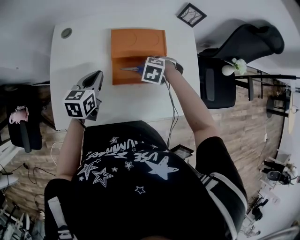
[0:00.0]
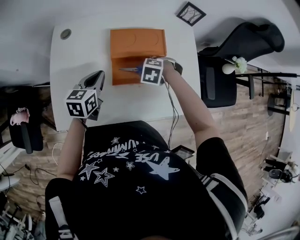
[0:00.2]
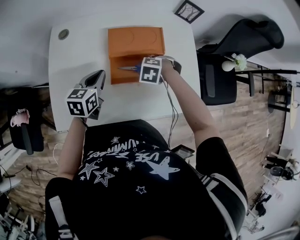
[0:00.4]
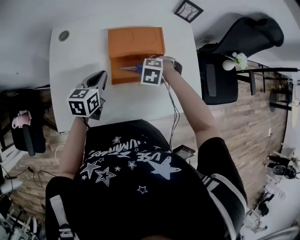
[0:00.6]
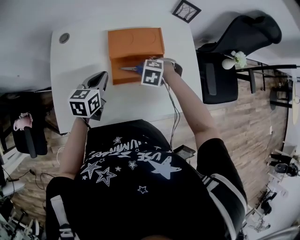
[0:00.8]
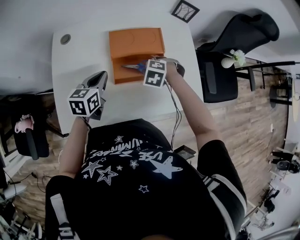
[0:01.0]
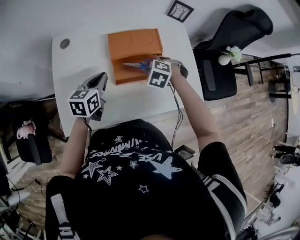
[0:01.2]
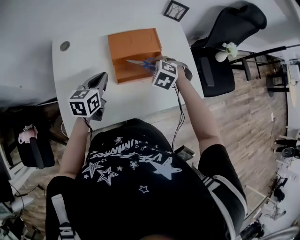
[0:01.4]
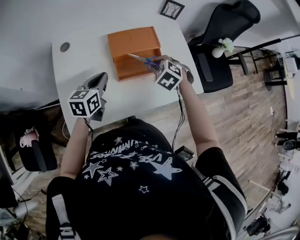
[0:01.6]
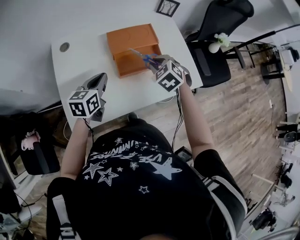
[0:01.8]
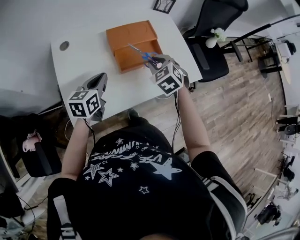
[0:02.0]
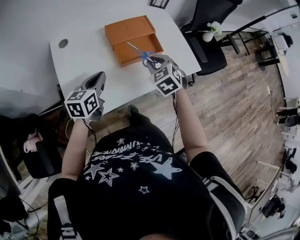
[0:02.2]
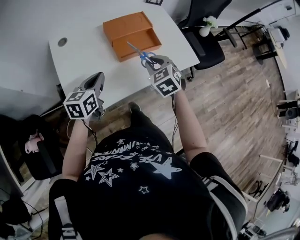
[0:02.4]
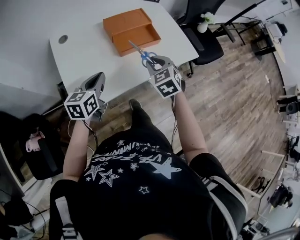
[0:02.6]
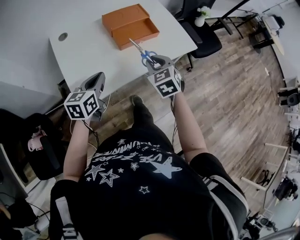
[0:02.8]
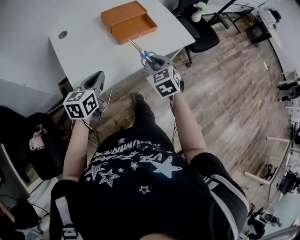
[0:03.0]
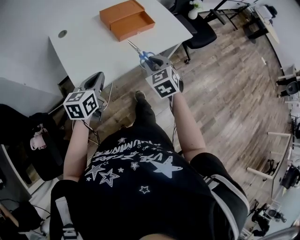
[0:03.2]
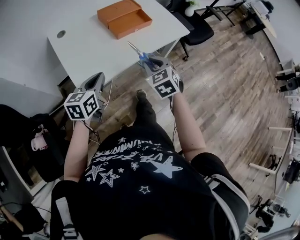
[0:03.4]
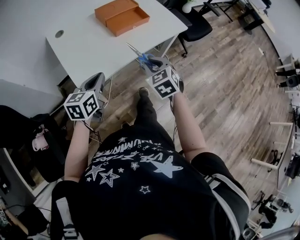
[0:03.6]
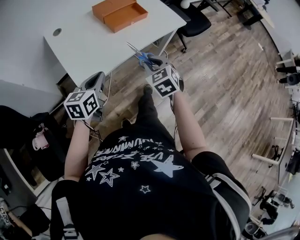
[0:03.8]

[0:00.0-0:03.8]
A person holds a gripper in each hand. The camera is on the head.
0.0 to 1.2 s: The right gripper is displaced upward by some 5 cm.
1.2 to 2.6 s: The right gripper goes about 25 cm backward and upward, and swivels about 50 degrees. Meanwhile the left gripper shifts roughly 20 cm backward.
2.6 to 3.8 s: The grippers both shift backward by some 20 cm.

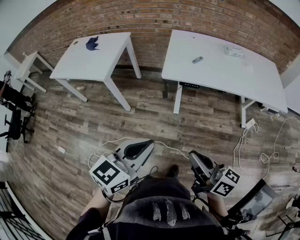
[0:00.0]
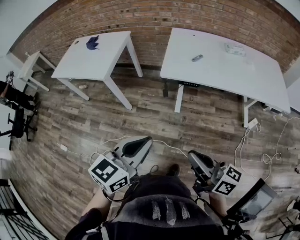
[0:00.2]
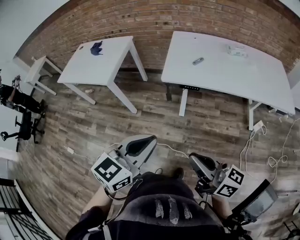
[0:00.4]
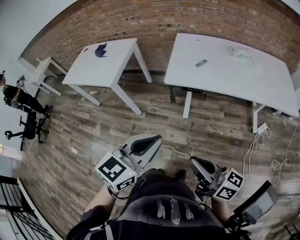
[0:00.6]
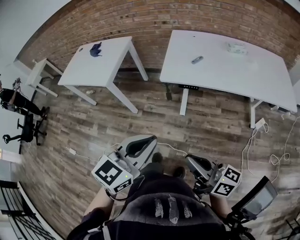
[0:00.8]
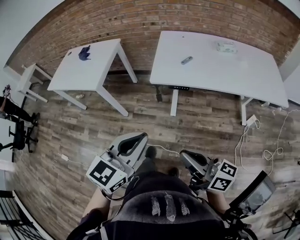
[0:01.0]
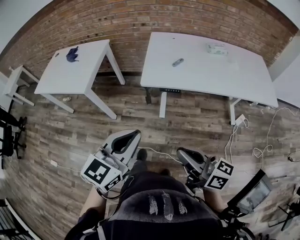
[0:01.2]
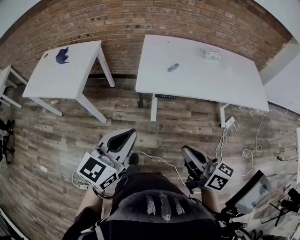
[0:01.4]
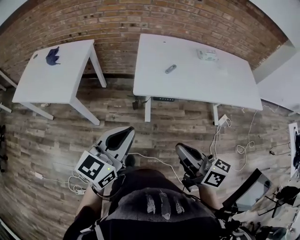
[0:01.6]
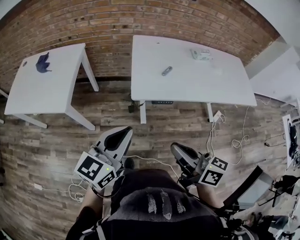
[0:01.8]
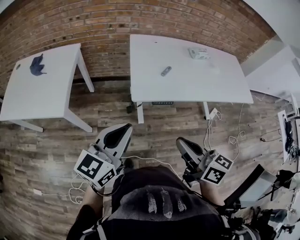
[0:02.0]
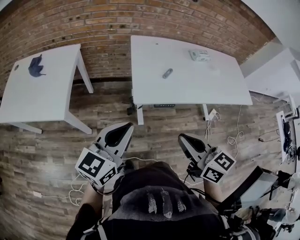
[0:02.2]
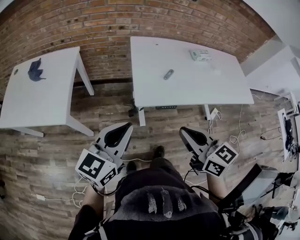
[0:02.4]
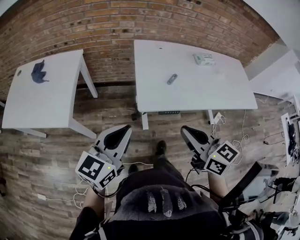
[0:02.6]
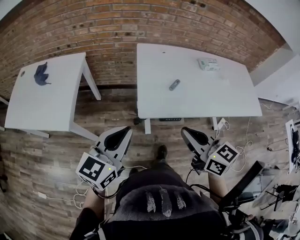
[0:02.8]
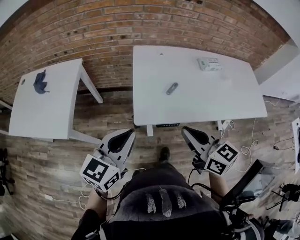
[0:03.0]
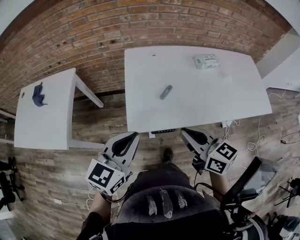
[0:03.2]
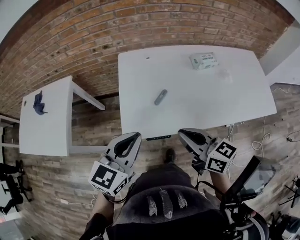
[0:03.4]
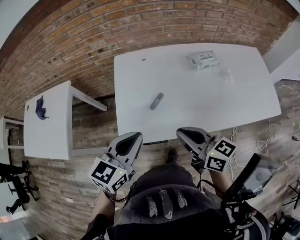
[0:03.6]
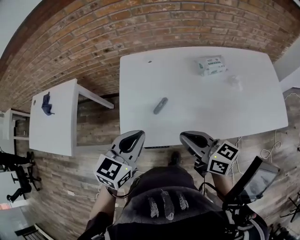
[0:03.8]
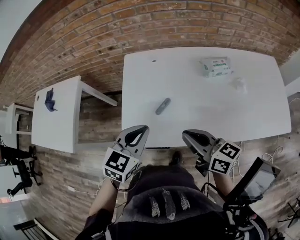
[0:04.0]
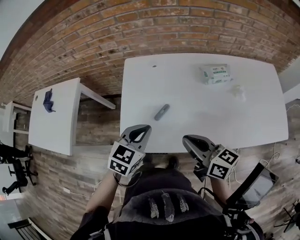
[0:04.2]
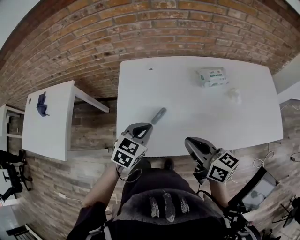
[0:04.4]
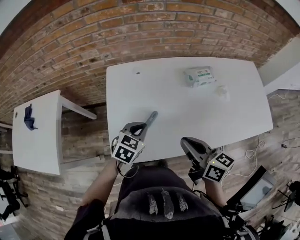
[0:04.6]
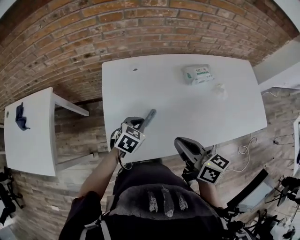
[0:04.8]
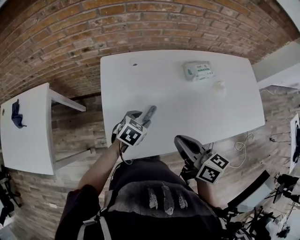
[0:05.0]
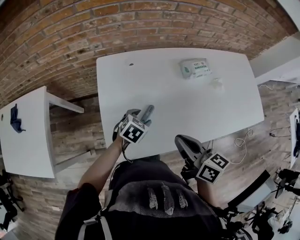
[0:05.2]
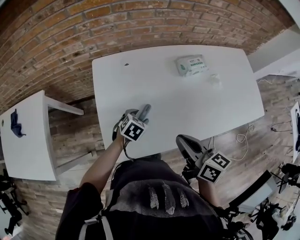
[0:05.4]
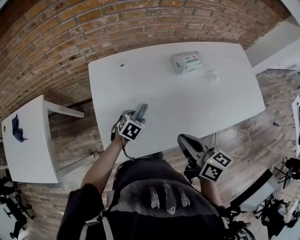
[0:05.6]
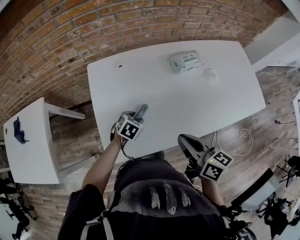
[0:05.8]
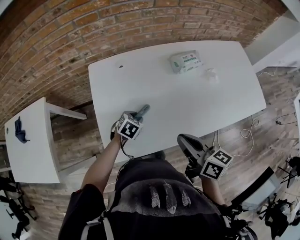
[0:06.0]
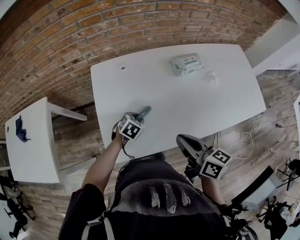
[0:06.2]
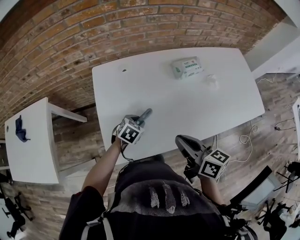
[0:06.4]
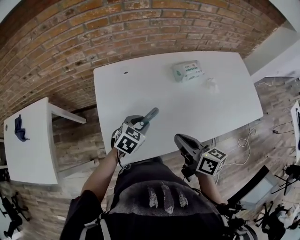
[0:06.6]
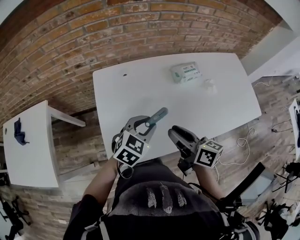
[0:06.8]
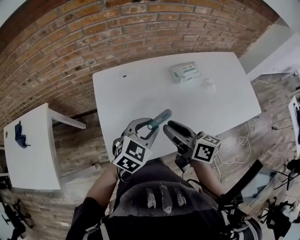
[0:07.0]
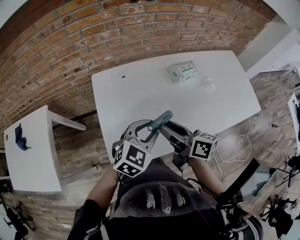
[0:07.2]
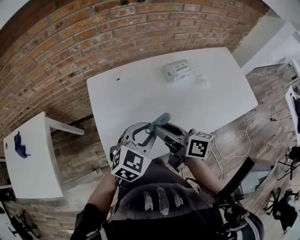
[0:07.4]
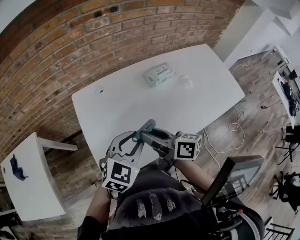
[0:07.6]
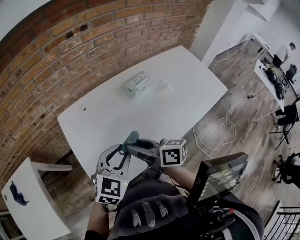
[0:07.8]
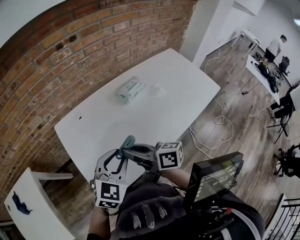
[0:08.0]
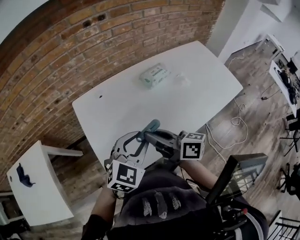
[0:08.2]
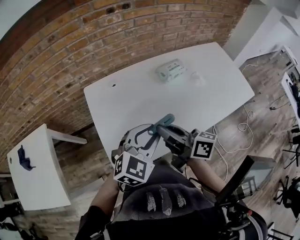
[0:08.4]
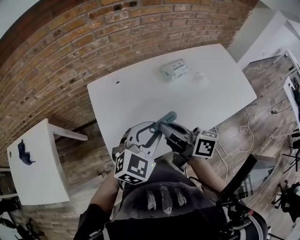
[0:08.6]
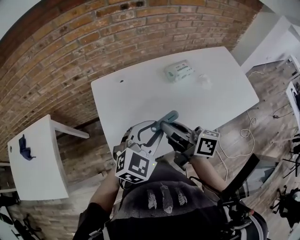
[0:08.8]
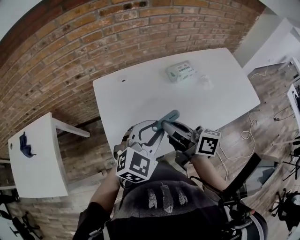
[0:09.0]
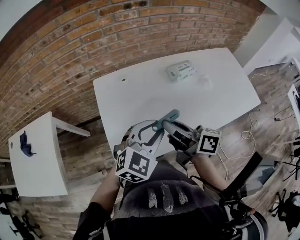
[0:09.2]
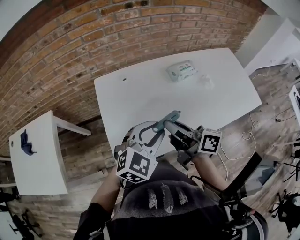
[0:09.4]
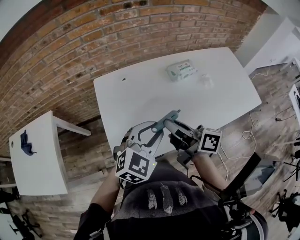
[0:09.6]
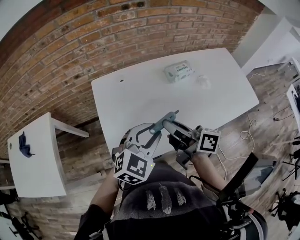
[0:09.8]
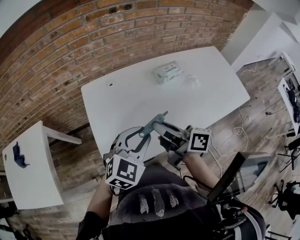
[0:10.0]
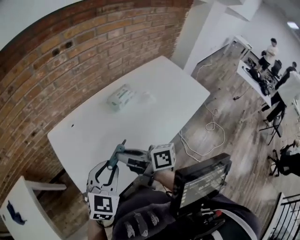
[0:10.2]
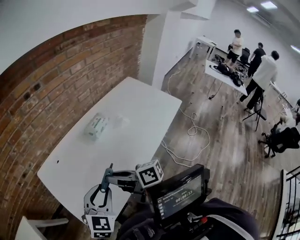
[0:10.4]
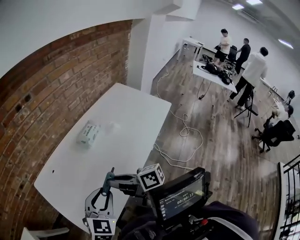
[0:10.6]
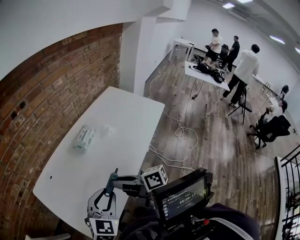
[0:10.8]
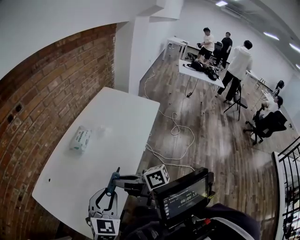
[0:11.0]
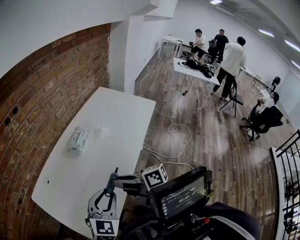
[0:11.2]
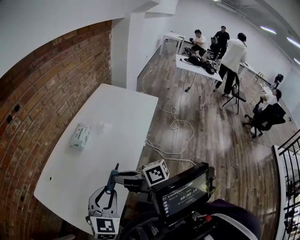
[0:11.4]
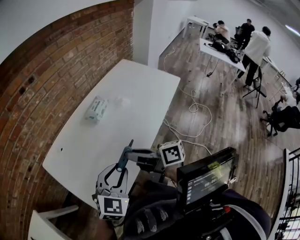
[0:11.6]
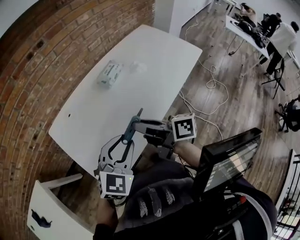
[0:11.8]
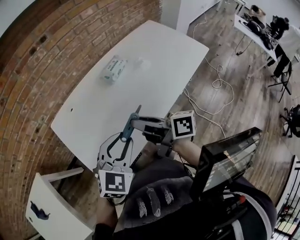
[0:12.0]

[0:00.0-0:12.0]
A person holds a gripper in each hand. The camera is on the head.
0.0 to 1.6 s: The grippers both shift forward by some 15 cm.
1.6 to 3.0 s: The grippers both shift forward by approximately 20 cm. The right gripper turns by about 20 degrees.
3.0 to 4.4 s: The right gripper travels to the right and forward by about 25 cm. The left gripper is displaced to the right, forward and downward by about 30 cm, and rotates about 30 degrees.
4.4 to 6.0 s: The left gripper heads downward, covering approximately 15 cm, turns by roughly 30 degrees, and opens its fingers.
6.0 to 7.6 s: The right gripper is displaced to the left and forward by roughly 10 cm, and opens up, while the left gripper travels upward by about 25 cm, and tilts its fingers approximately 30 degrees upward.
7.6 to 9.0 s: The right gripper closes.
9.0 to 10.4 s: The grippers stay close to where they were, moving slightly.
10.4 to 12.0 s: The left gripper ends up roughly 5 cm from where it was; the right gripper heads to the right, covering roughly 5 cm.

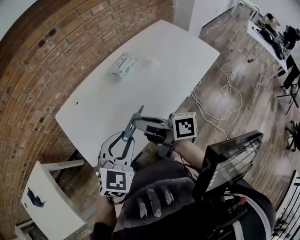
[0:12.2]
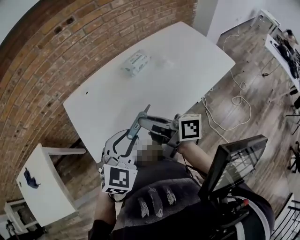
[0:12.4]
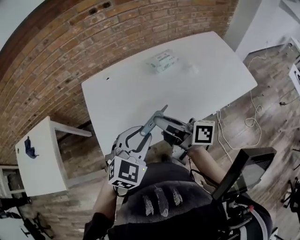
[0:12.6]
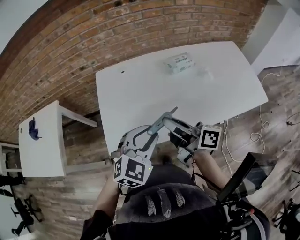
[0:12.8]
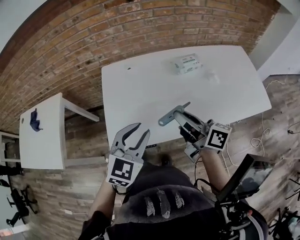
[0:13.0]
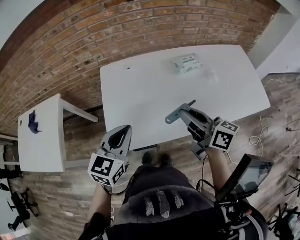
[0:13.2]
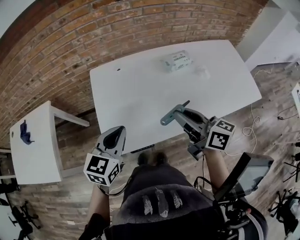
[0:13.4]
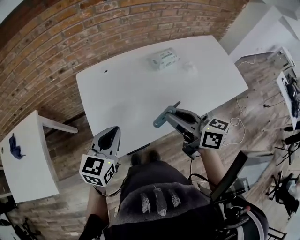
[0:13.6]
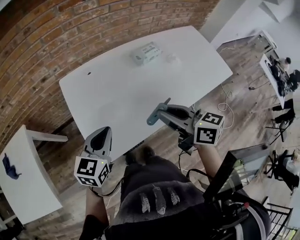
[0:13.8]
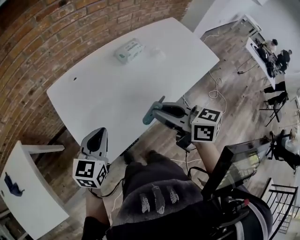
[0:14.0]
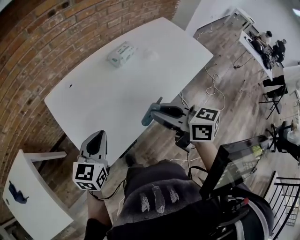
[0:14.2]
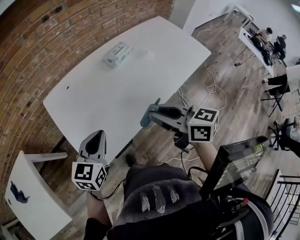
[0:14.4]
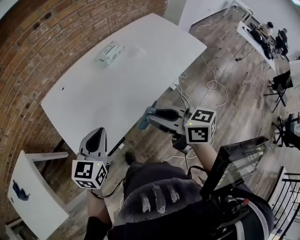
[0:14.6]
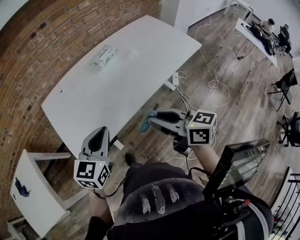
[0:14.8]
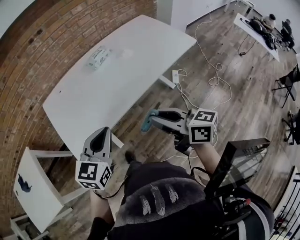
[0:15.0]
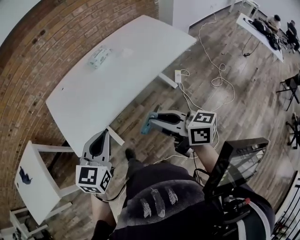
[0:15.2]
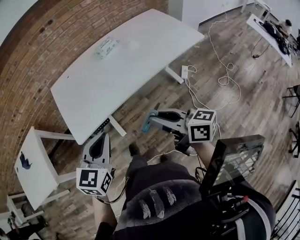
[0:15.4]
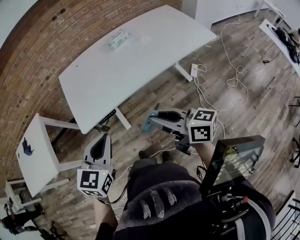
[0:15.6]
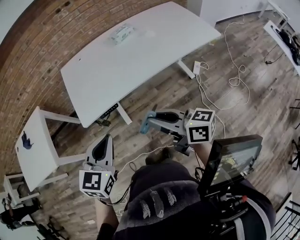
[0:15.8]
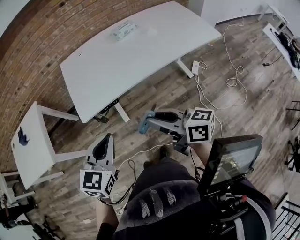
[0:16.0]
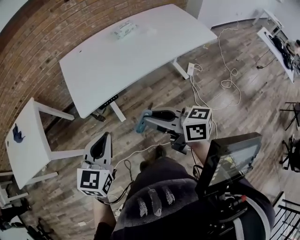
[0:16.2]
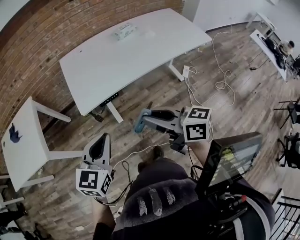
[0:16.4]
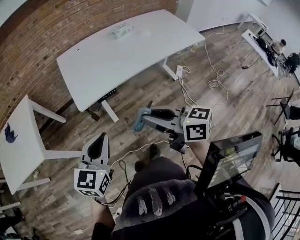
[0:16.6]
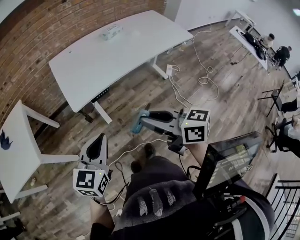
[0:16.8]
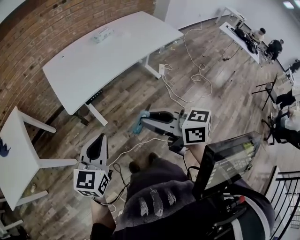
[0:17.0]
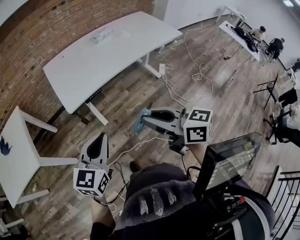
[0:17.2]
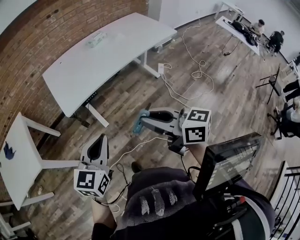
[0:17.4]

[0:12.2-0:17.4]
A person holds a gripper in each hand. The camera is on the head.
12.2 to 14.0 s: The right gripper swivels approximately 40 degrees, while the left gripper shifts some 15 cm to the left, changes its angle by approximately 30 degrees, and closes its fingers.
14.0 to 15.6 s: Both grippers travel together backward and to the right, about 30 cm. The right gripper turns by roughly 20 degrees.
15.6 to 17.4 s: Both grippers move backward and to the left, some 20 cm.

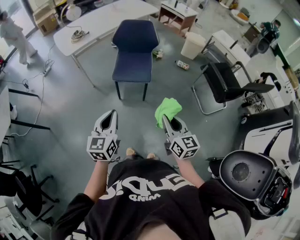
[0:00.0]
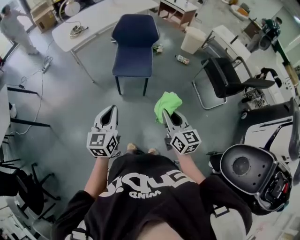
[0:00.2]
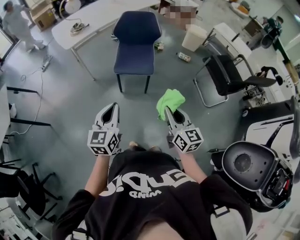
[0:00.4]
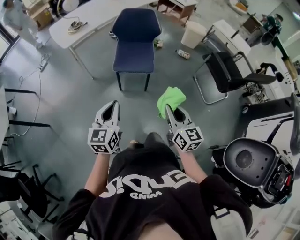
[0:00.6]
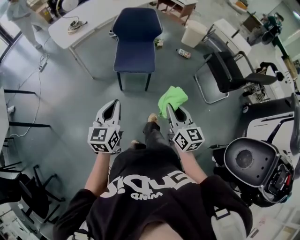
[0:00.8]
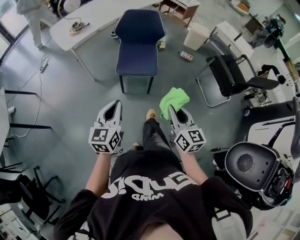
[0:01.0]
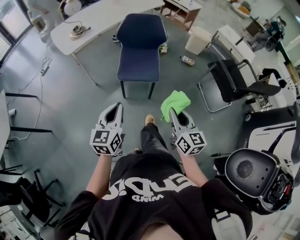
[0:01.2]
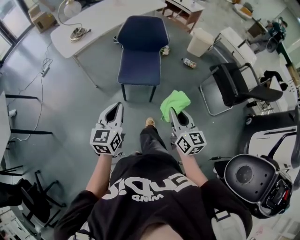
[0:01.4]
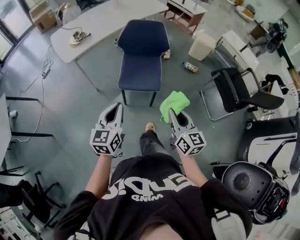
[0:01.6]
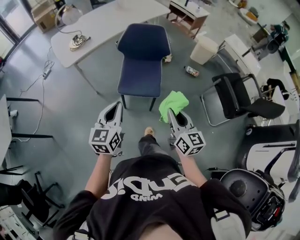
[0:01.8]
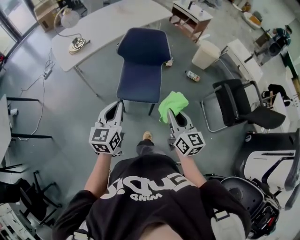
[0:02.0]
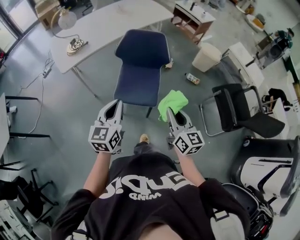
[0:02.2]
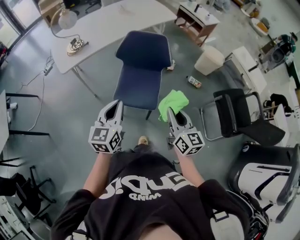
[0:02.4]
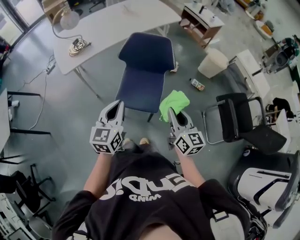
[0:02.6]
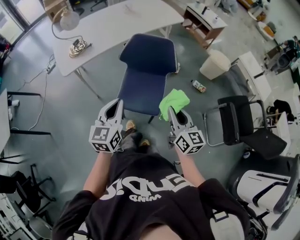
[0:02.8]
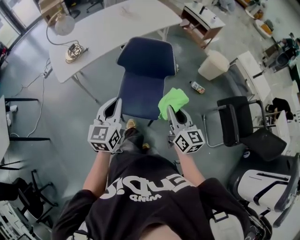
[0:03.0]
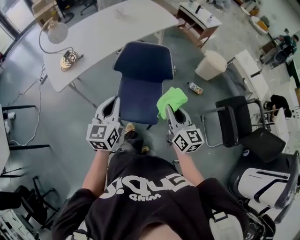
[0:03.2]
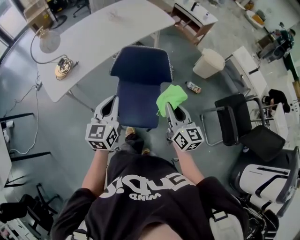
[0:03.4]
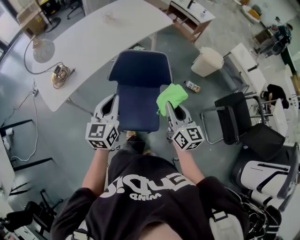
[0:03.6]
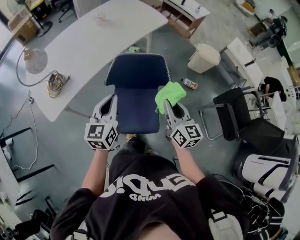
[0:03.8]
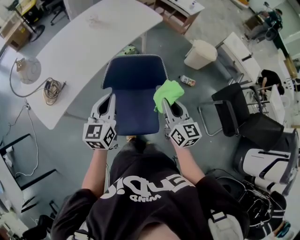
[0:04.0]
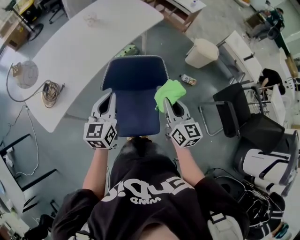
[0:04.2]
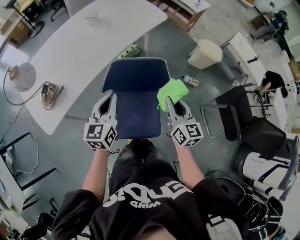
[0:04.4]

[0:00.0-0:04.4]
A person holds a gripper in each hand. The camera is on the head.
0.0 to 1.4 s: Both grippers travel together forward, about 15 cm.
1.4 to 3.0 s: Both grippers travel together forward, some 30 cm.
3.0 to 4.4 s: Both grippers move forward, some 30 cm.
